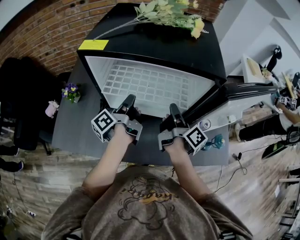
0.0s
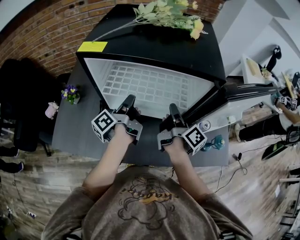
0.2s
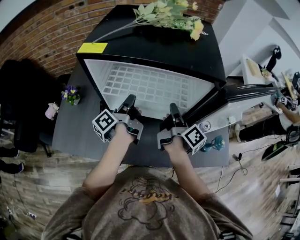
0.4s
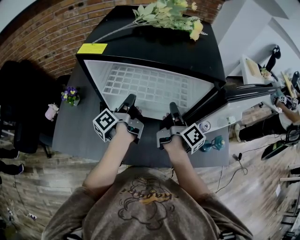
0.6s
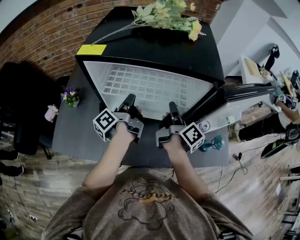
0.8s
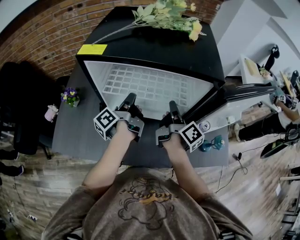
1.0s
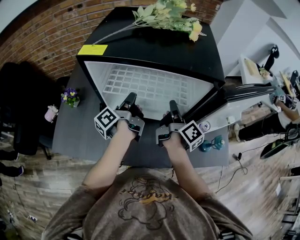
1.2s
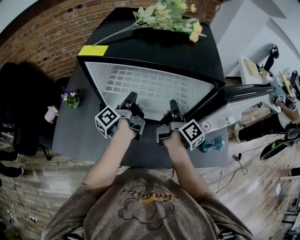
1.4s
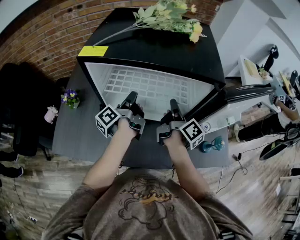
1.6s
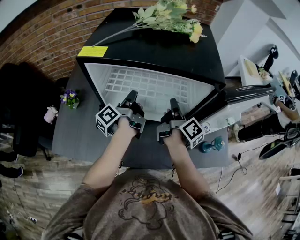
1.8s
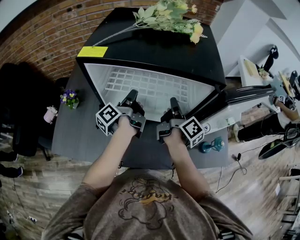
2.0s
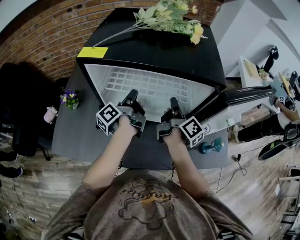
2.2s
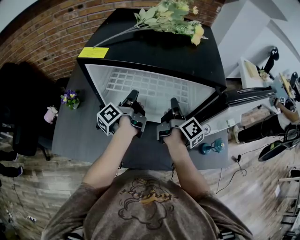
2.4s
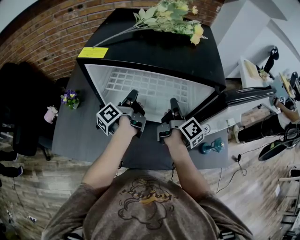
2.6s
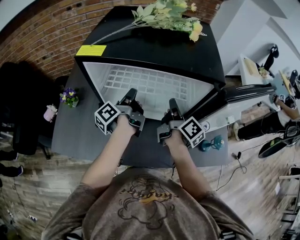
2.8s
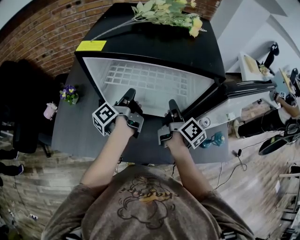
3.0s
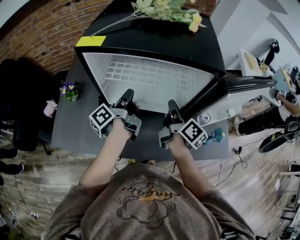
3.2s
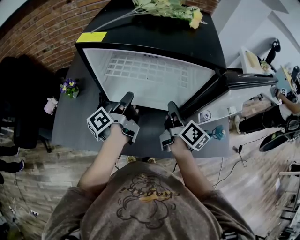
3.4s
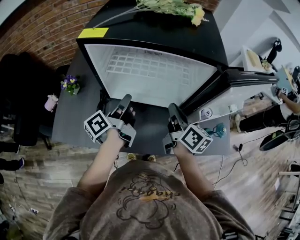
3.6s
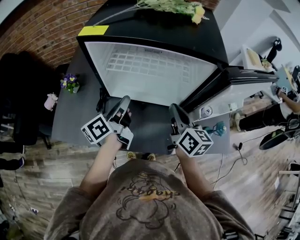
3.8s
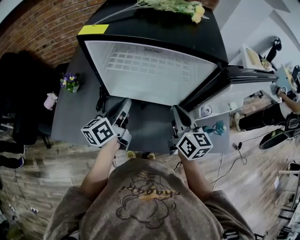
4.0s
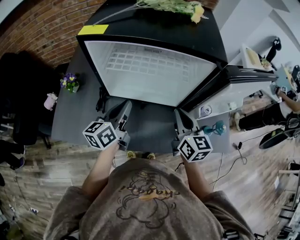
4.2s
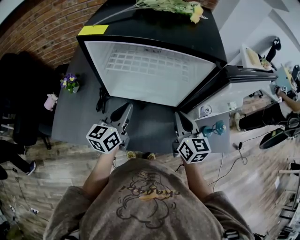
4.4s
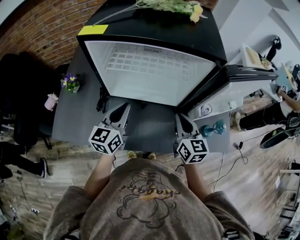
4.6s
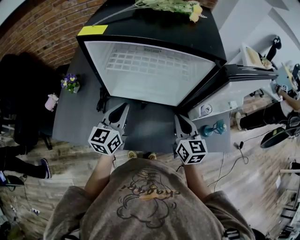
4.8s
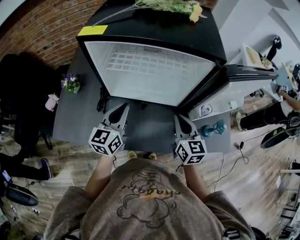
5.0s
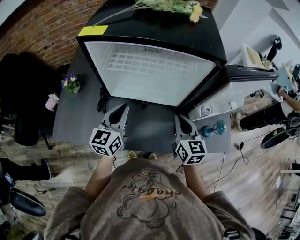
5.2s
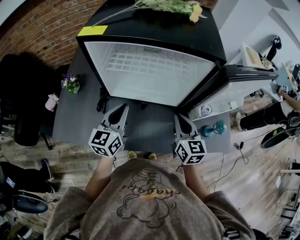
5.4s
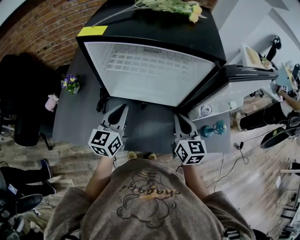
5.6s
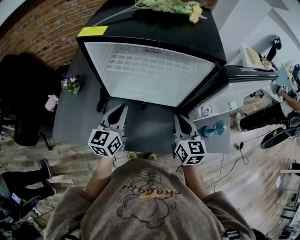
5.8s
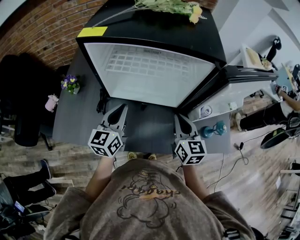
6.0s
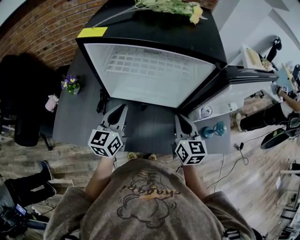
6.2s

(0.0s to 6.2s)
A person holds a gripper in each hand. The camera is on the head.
0.0s - 3.2s: The grippers make only small movements.
3.2s - 4.6s: The grippers both shift backward by approximately 10 cm. The left gripper twists roughly 70 degrees clockwise, seen from behind; the right gripper rotates around the line of its fingers by roughly 50 degrees, counterclockwise from behind.
4.6s - 6.2s: Both grippers stay about where they are.

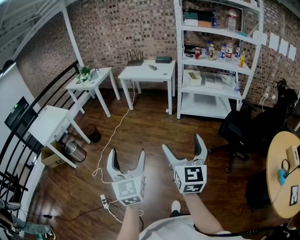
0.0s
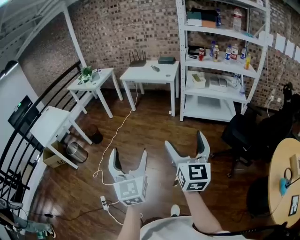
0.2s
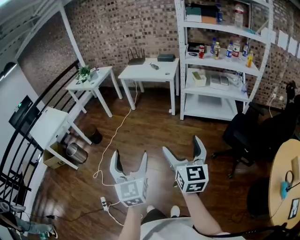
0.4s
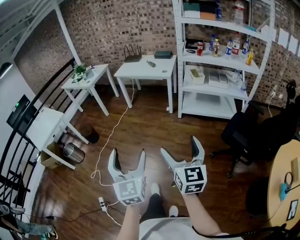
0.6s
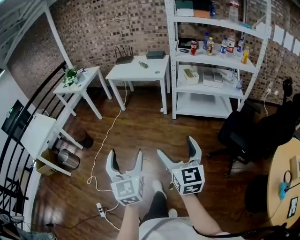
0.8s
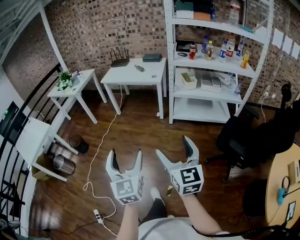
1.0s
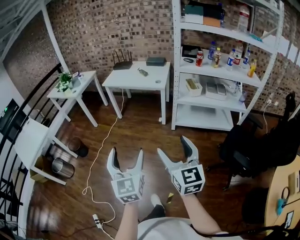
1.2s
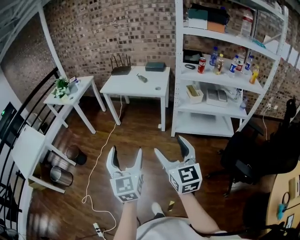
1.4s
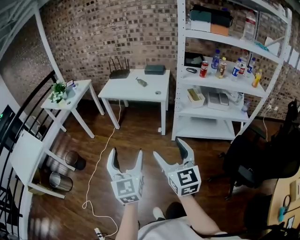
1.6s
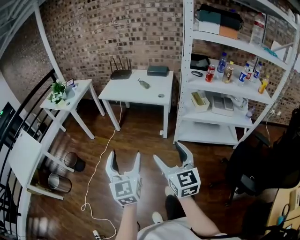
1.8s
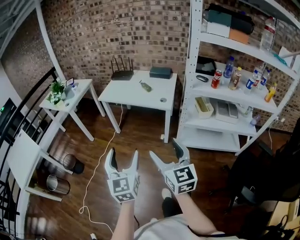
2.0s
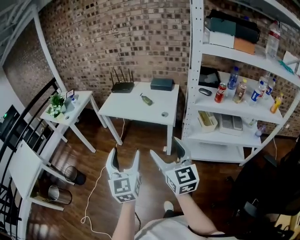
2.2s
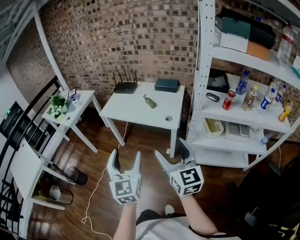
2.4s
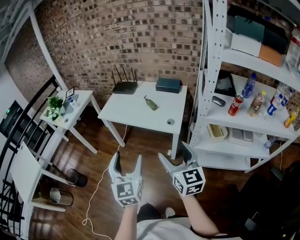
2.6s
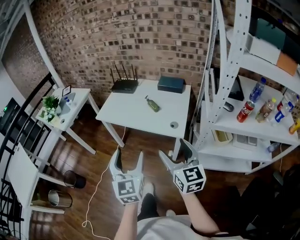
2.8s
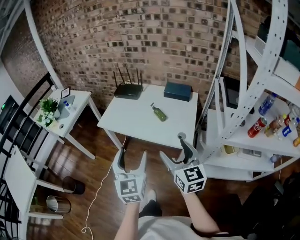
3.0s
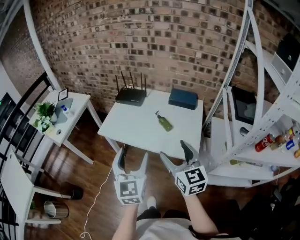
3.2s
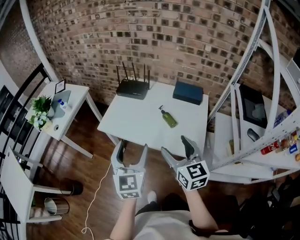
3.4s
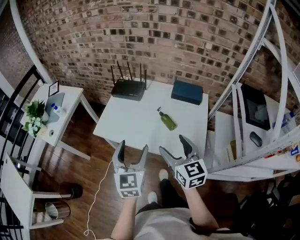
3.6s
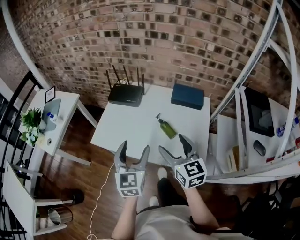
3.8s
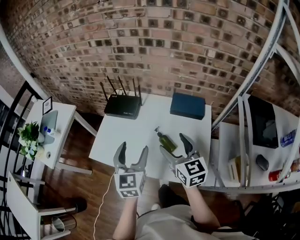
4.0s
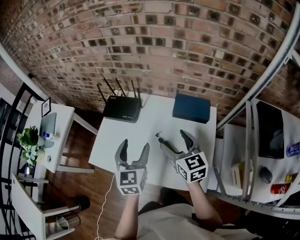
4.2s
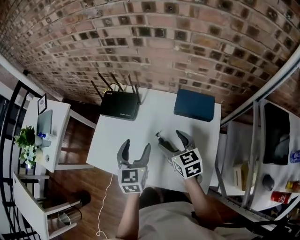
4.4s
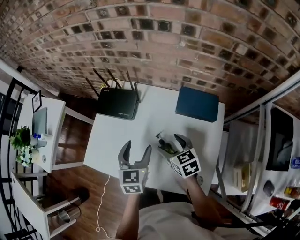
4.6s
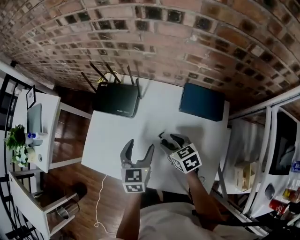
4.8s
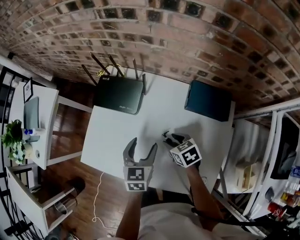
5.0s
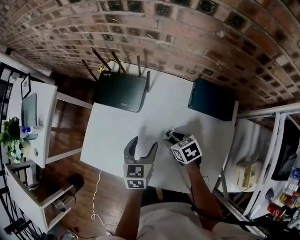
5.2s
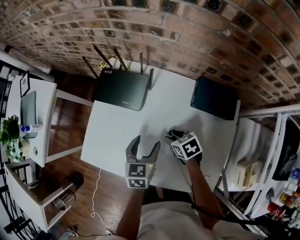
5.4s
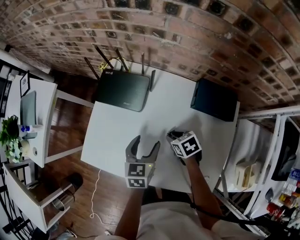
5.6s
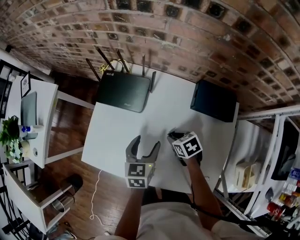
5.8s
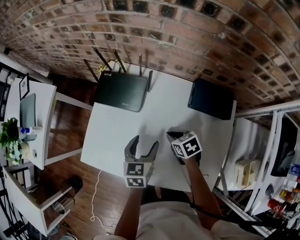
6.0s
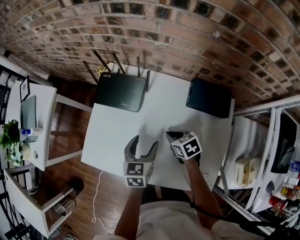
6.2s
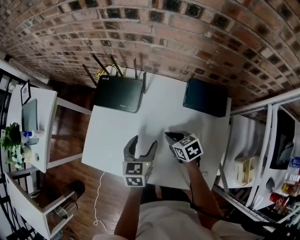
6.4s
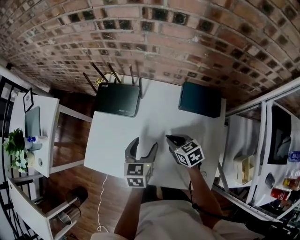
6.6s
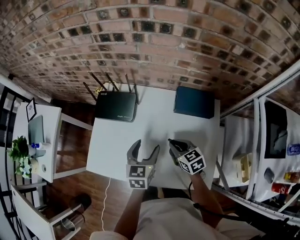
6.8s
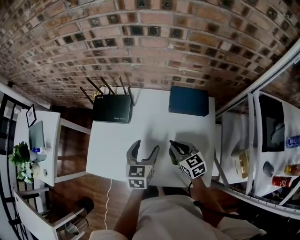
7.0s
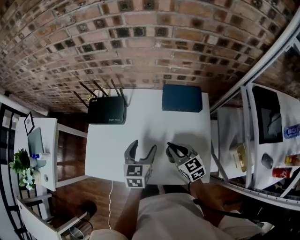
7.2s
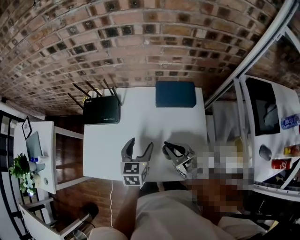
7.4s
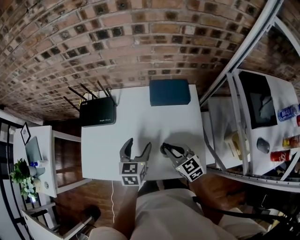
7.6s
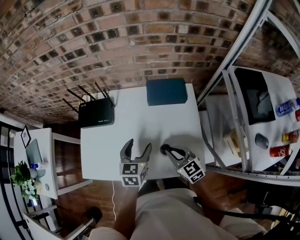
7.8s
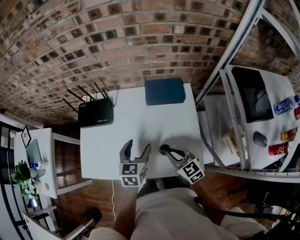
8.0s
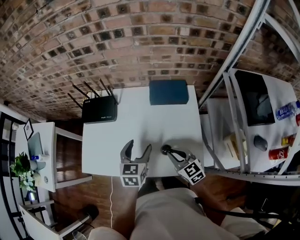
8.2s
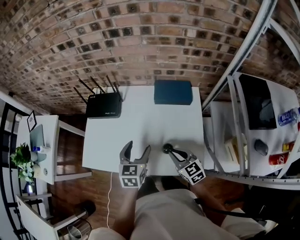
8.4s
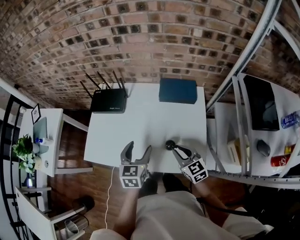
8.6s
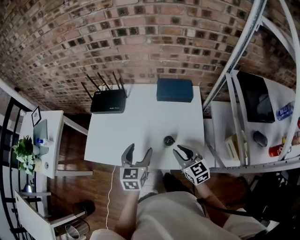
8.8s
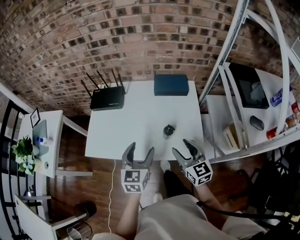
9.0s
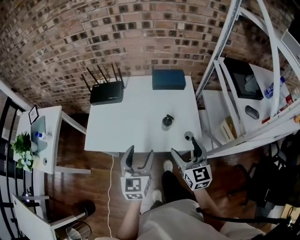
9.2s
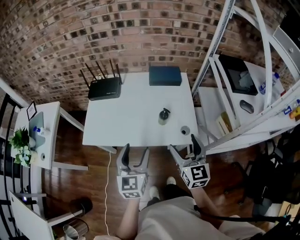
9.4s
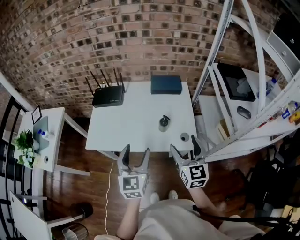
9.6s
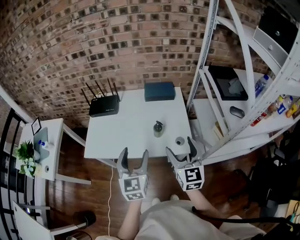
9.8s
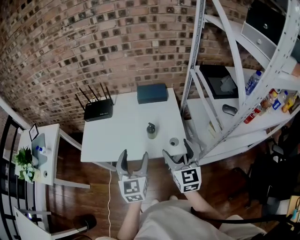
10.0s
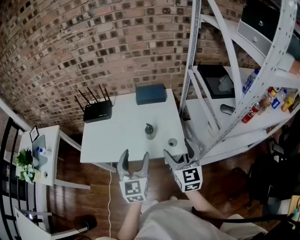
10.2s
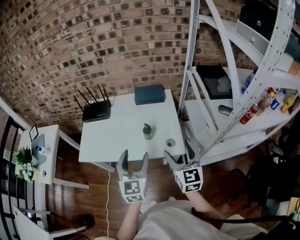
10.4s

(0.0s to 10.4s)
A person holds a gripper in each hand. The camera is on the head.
0.0s - 1.4s: The pair of grippers is taken forward, roughly 40 cm.
1.4s - 3.0s: Both grippers are carried forward, some 60 cm.
3.0s - 4.4s: The pair of grippers is taken forward, approximately 50 cm. The right gripper turns by about 20 degrees. Meanwhile the left gripper turns by roughly 20 degrees.
4.4s - 6.0s: Both grippers travel together downward, some 15 cm. The right gripper rotates about 40 degrees, and closes.
6.0s - 7.4s: The left gripper heads upward, to the right and backward, covering some 15 cm. The right gripper heads upward, backward and to the right, covering about 20 cm, and changes its angle by about 40 degrees.
7.4s - 9.0s: The left gripper is displaced backward by roughly 20 cm, while the right gripper is displaced backward and upward by roughly 20 cm.
9.0s - 10.4s: Both grippers travel together backward, upward and to the right, approximately 15 cm. The right gripper opens its fingers.

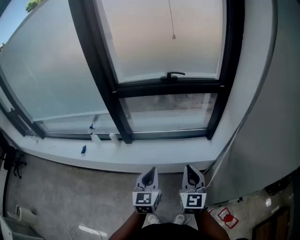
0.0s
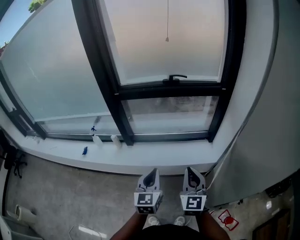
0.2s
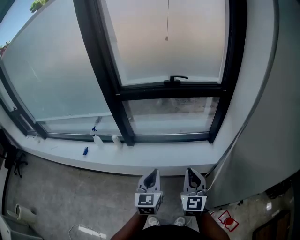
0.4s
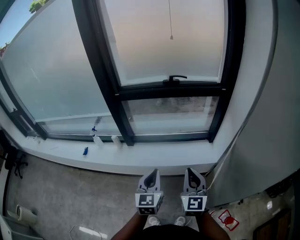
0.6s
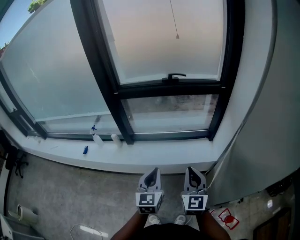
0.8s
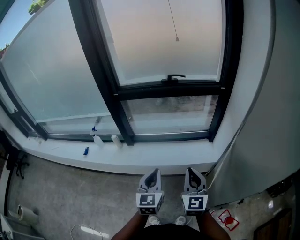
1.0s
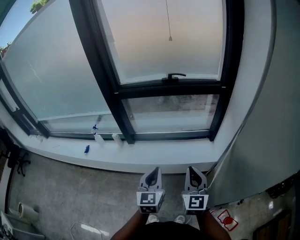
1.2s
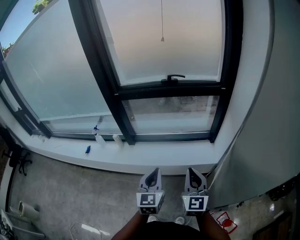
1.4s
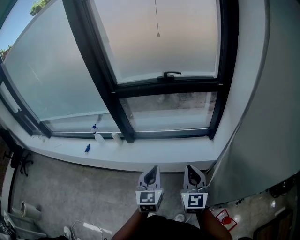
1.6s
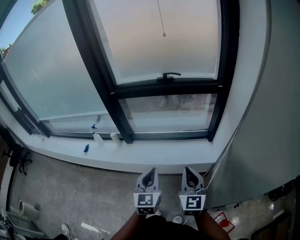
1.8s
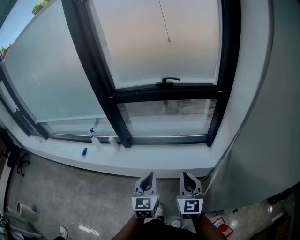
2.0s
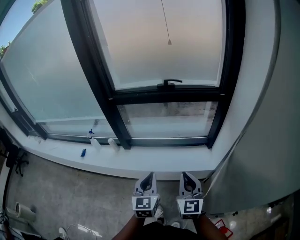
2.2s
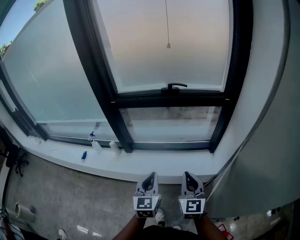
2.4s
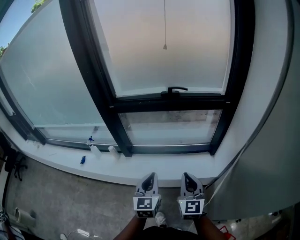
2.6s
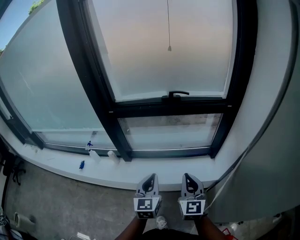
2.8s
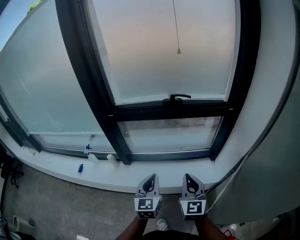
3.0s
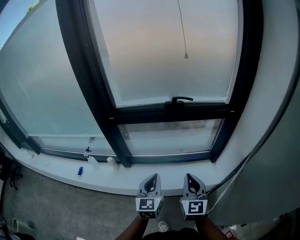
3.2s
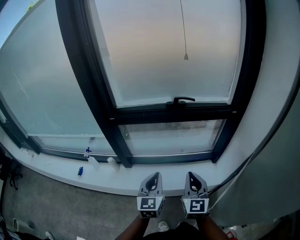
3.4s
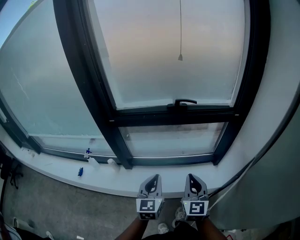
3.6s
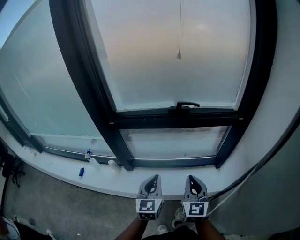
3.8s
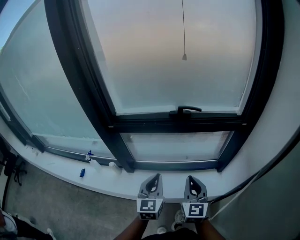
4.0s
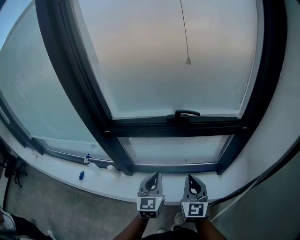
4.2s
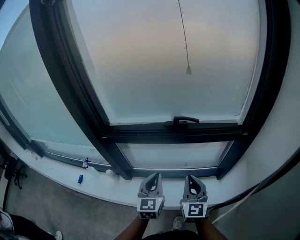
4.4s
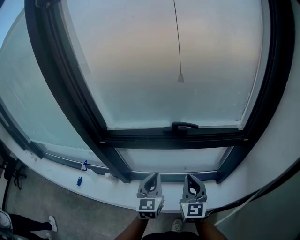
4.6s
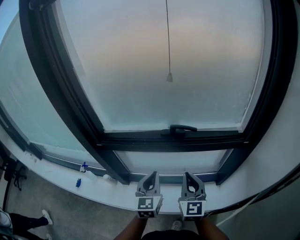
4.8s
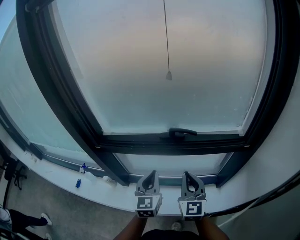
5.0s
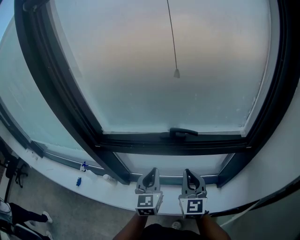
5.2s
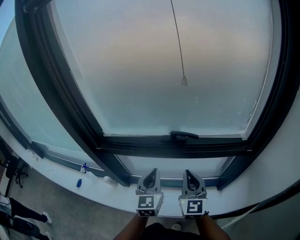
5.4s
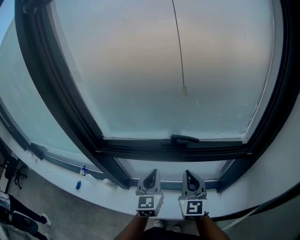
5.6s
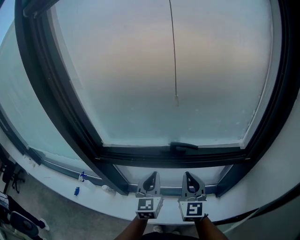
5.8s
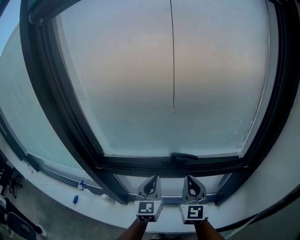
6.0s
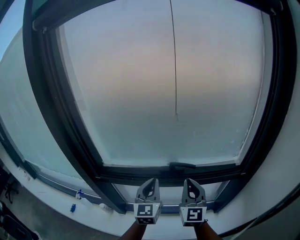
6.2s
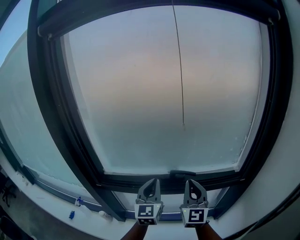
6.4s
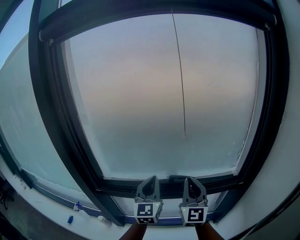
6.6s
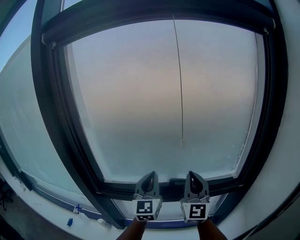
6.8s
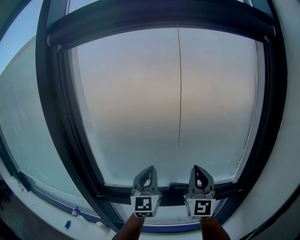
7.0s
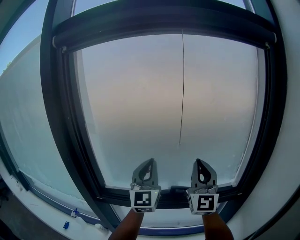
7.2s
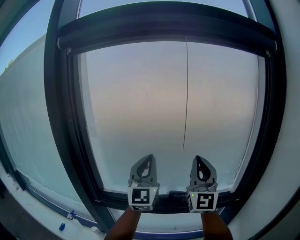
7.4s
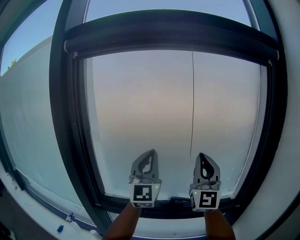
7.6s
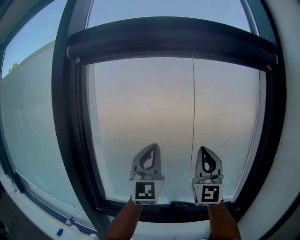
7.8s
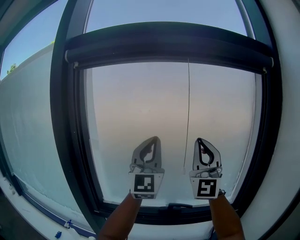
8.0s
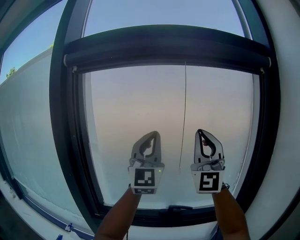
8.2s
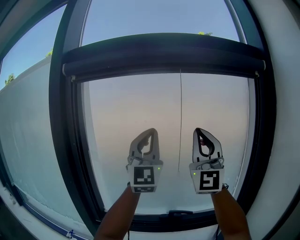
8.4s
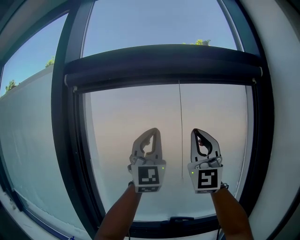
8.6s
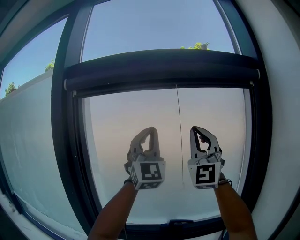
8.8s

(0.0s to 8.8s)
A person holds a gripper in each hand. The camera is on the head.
0.0s - 1.4s: The grippers make only small movements.
1.4s - 3.0s: The two grippers go approximately 15 cm forward.
3.0s - 4.4s: The grippers both shift forward by some 20 cm.
4.4s - 5.8s: The right gripper shifts roughly 15 cm forward and upward, while the left gripper is displaced forward by approximately 15 cm.
5.8s - 7.4s: Both grippers travel together upward, some 30 cm. The left gripper angles its fingers upward, by some 30 degrees, while the right gripper tilts its fingers some 30 degrees upward.
7.4s - 8.8s: Both grippers travel together upward, approximately 25 cm. The left gripper swivels some 30 degrees. Meanwhile the right gripper turns by roughly 30 degrees.
